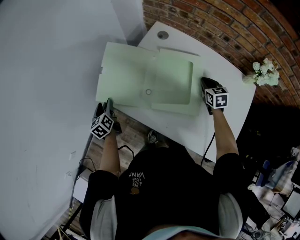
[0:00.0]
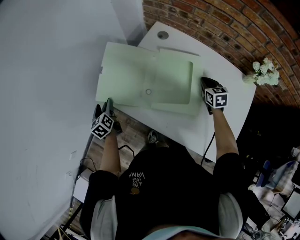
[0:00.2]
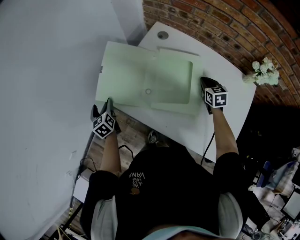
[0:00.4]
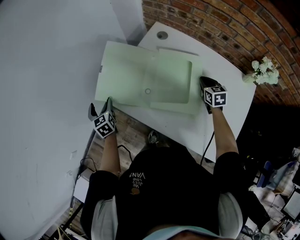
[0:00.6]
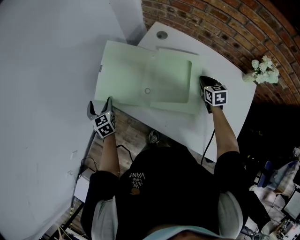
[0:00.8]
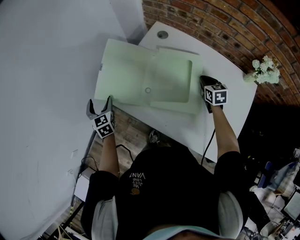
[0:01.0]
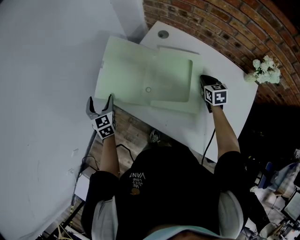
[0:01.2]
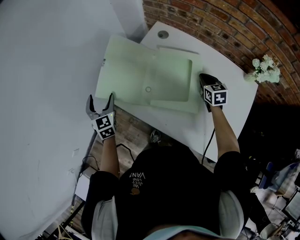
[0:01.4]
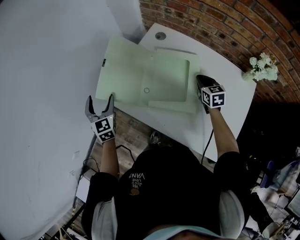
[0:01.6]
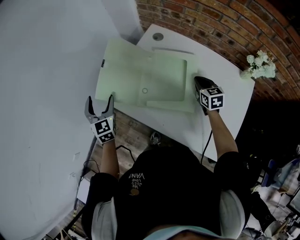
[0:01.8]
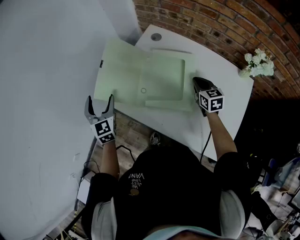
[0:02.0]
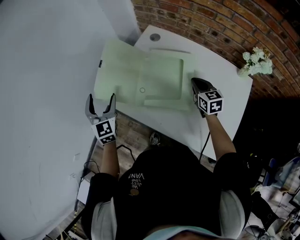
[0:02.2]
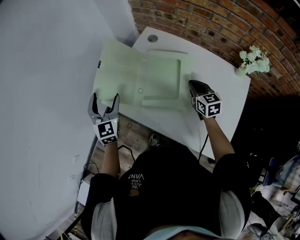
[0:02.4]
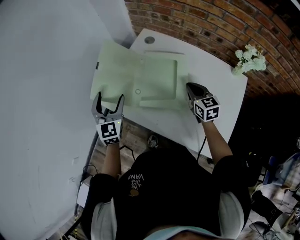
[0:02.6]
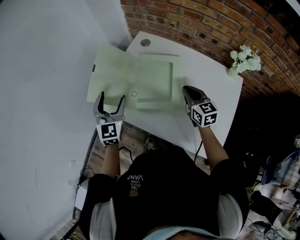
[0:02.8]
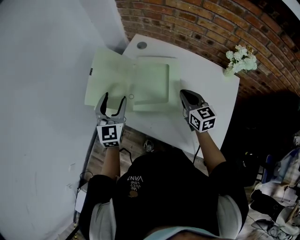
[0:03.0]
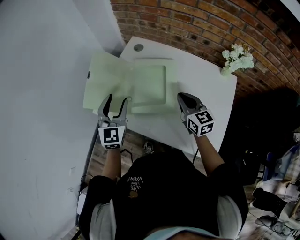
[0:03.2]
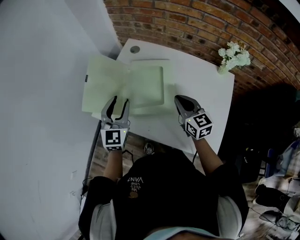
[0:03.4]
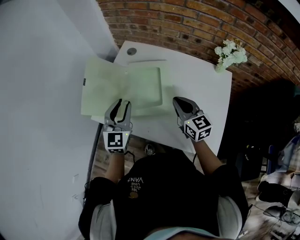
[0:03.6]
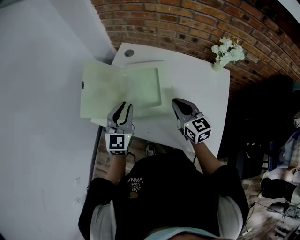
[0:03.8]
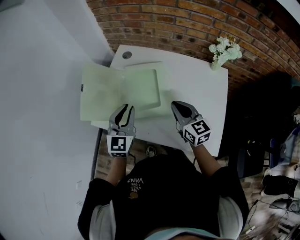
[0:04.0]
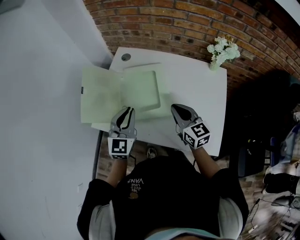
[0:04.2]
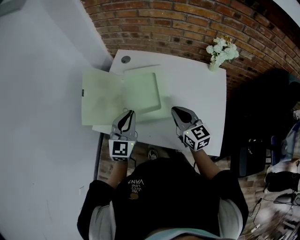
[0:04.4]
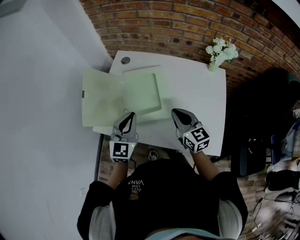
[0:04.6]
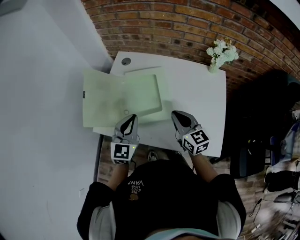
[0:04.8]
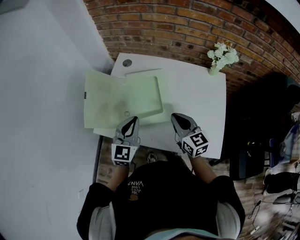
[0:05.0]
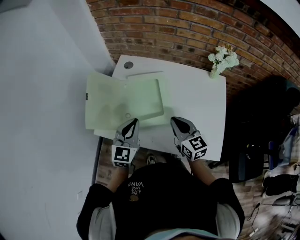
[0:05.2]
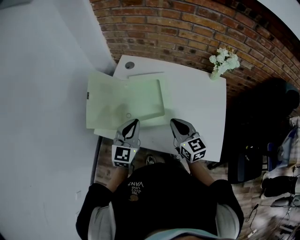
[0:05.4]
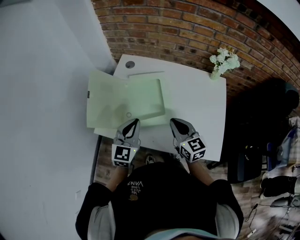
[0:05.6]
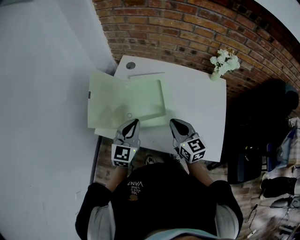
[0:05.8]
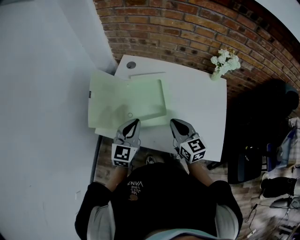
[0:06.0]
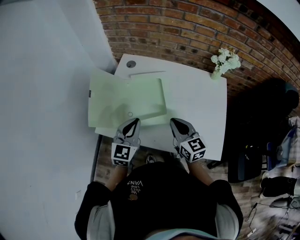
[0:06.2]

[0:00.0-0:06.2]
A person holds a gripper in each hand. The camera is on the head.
0:00.0 to 0:01.6: The left gripper goes about 15 cm upward, rotates around the line of its fingers by some 40 degrees, clockwise from behind, and opens up.
0:01.6 to 0:03.2: The left gripper shifts some 20 cm to the right, swivels roughly 30 degrees, and closes its fingers. The right gripper moves backward and upward, approximately 15 cm.
0:03.2 to 0:04.6: The left gripper moves to the right, some 5 cm, and closes up; the right gripper is displaced backward by roughly 5 cm.
0:04.6 to 0:06.2: There are only small adjustments of the grippers.

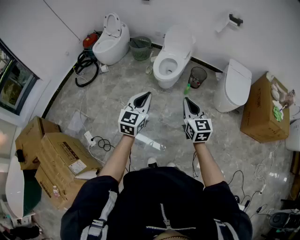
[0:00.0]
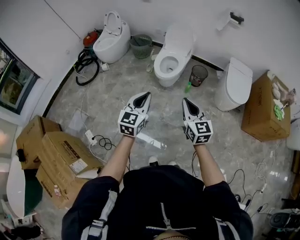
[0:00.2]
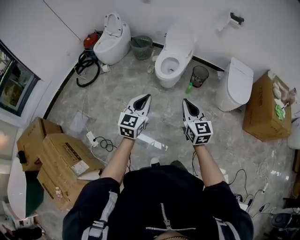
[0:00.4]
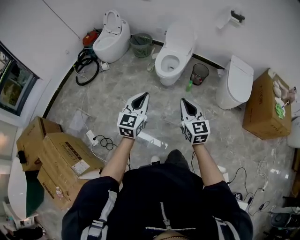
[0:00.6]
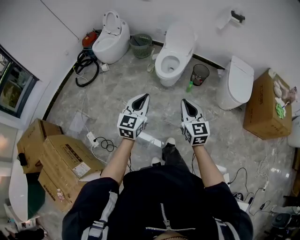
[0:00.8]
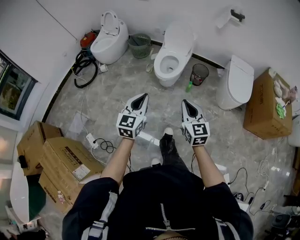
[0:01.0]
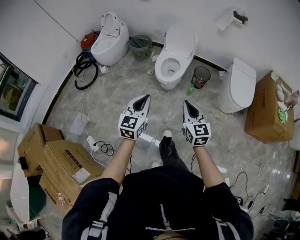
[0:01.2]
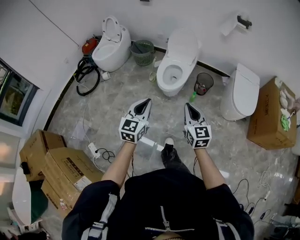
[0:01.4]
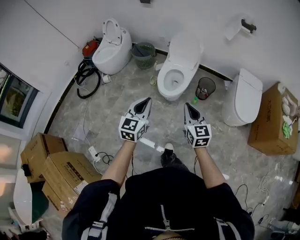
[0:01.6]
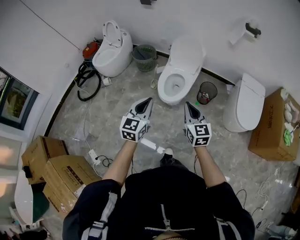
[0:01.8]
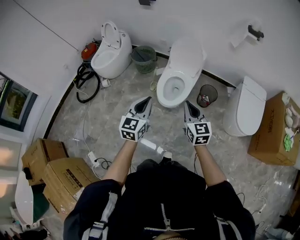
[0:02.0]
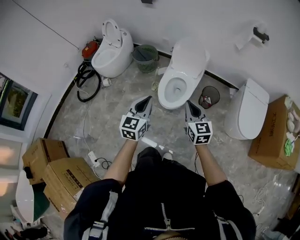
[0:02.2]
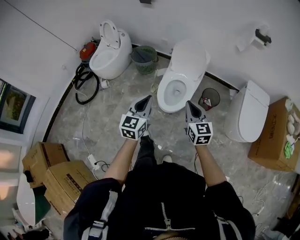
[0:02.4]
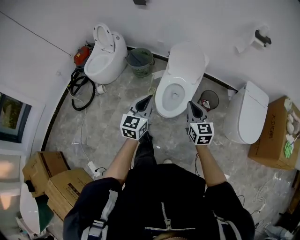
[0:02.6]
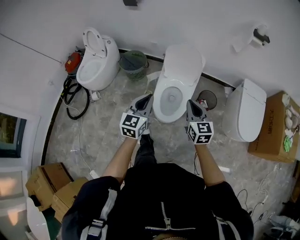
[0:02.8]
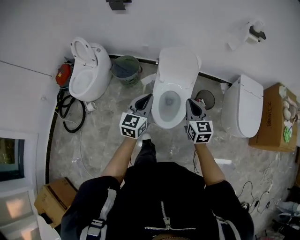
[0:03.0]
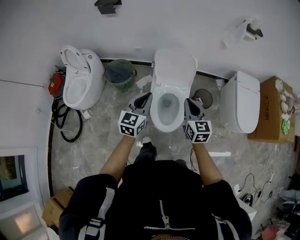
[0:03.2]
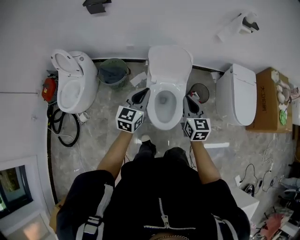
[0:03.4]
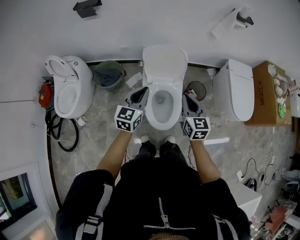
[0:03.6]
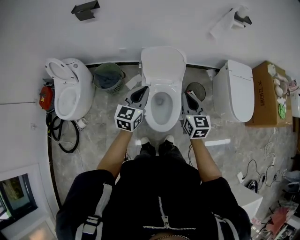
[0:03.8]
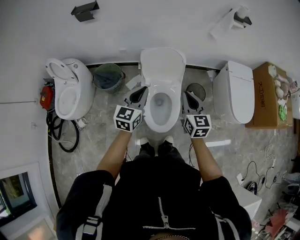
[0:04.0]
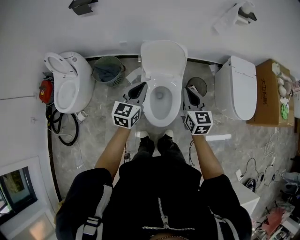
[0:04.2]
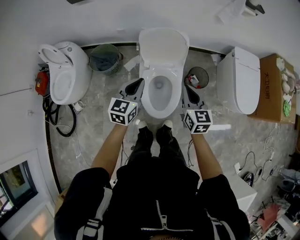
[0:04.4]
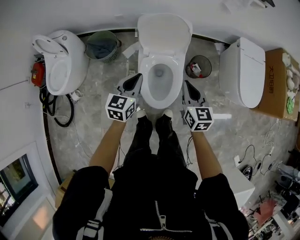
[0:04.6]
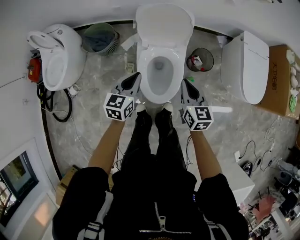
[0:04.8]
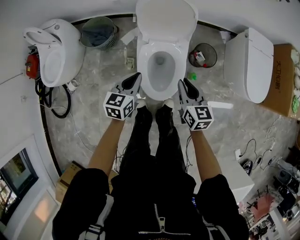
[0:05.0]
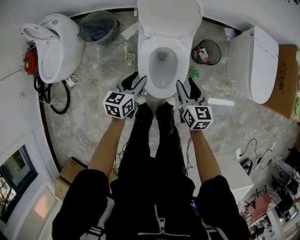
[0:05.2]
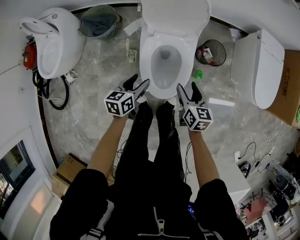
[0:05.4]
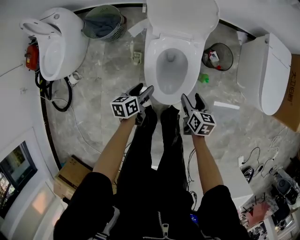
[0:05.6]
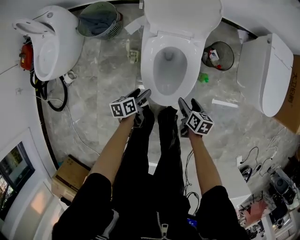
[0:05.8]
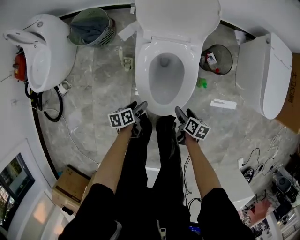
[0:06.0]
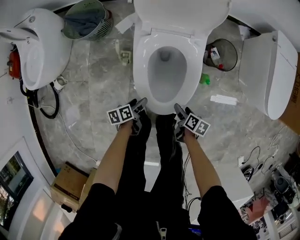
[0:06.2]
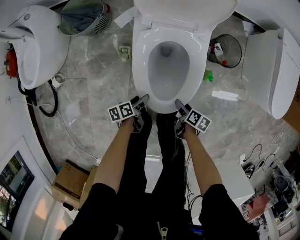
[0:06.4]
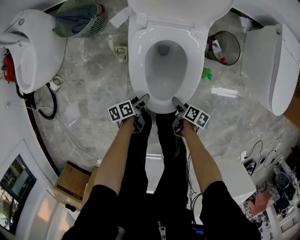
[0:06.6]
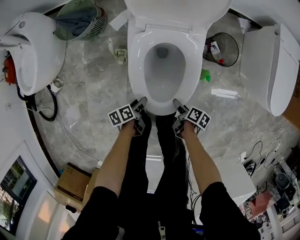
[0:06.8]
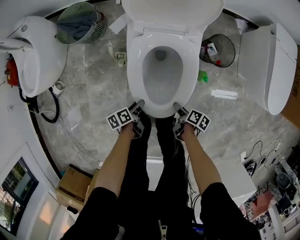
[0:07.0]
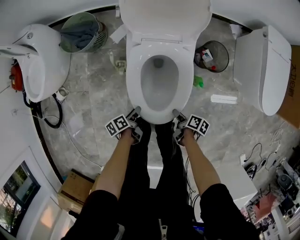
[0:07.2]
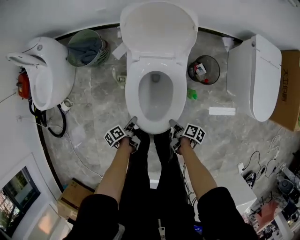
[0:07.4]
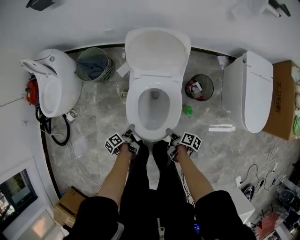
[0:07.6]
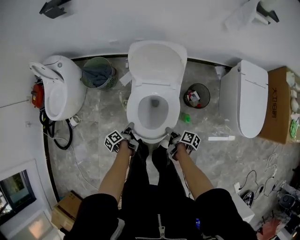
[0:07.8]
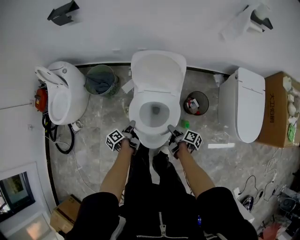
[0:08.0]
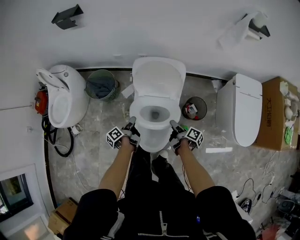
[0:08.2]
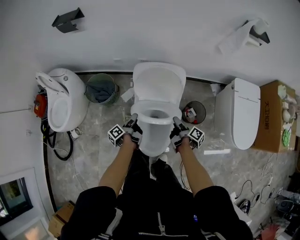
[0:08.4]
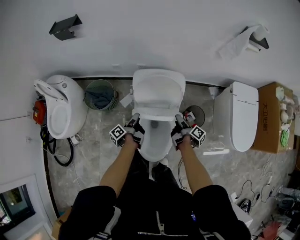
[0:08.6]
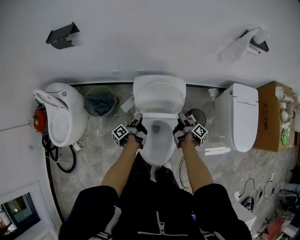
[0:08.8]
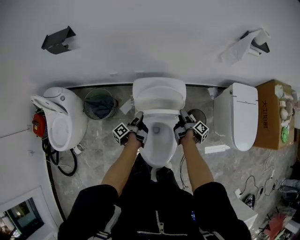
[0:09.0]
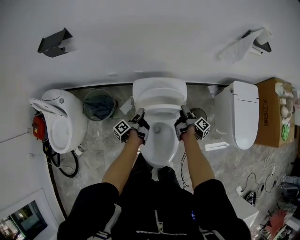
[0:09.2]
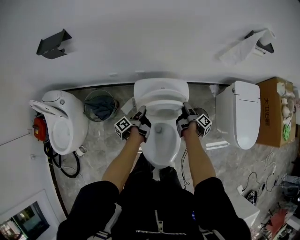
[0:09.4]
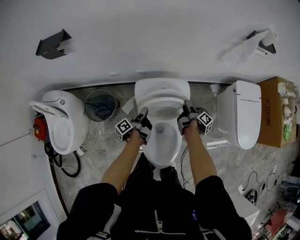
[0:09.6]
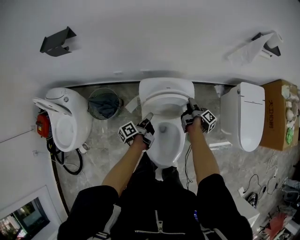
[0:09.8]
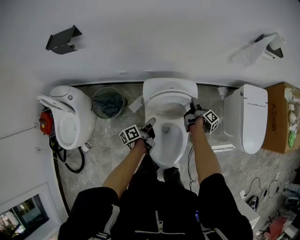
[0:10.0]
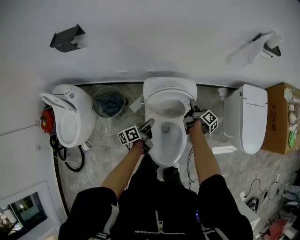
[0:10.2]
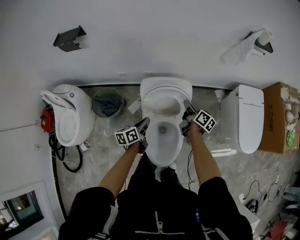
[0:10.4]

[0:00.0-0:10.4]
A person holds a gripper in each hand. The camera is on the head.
0:00.0 to 0:01.4: Both grippers move forward, roughly 15 cm.
0:01.4 to 0:03.0: Both grippers are carried forward, approximately 50 cm.
0:03.0 to 0:04.4: The left gripper travels forward and downward by roughly 15 cm. Meanwhile the right gripper is displaced forward by some 10 cm.
0:04.4 to 0:06.0: The grippers both shift downward by about 50 cm. The left gripper rolls counterclockwise, seen from behind, by roughly 50 degrees, and opens its fingers, while the right gripper points its fingers some 30 degrees further downward, and opens its fingers.
0:06.0 to 0:07.4: The left gripper goes downward and returns, about 10 cm each way, changes its angle by approximately 30 degrees, and closes, while the right gripper travels downward and back again, roughly 10 cm each way, swivels roughly 30 degrees, and closes up.
0:07.4 to 0:09.0: The grippers both shift forward and upward by approximately 40 cm. The right gripper changes its angle by approximately 40 degrees; the left gripper rotates roughly 30 degrees.
0:09.0 to 0:10.4: The grippers both shift upward by some 5 cm. The right gripper changes its angle by approximately 40 degrees, and closes up. The left gripper rotates around the line of its fingers by some 50 degrees, clockwise from behind, and closes.

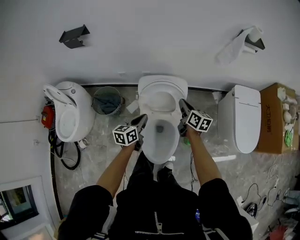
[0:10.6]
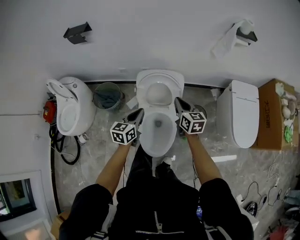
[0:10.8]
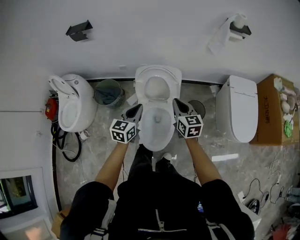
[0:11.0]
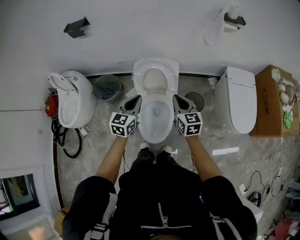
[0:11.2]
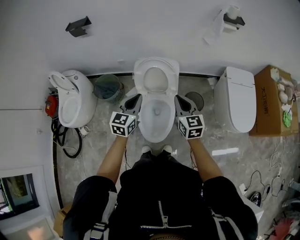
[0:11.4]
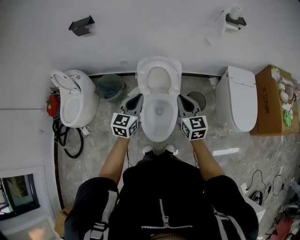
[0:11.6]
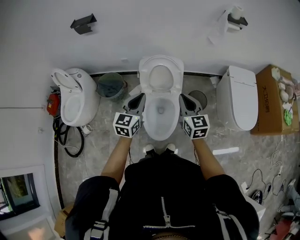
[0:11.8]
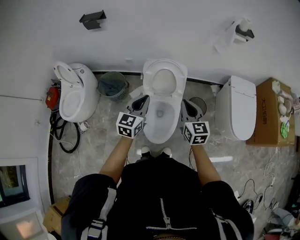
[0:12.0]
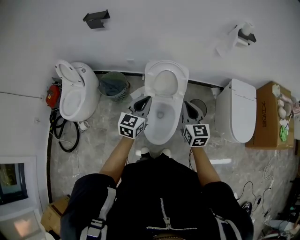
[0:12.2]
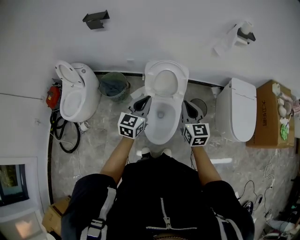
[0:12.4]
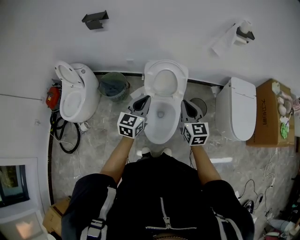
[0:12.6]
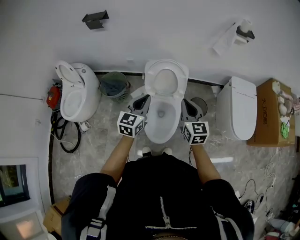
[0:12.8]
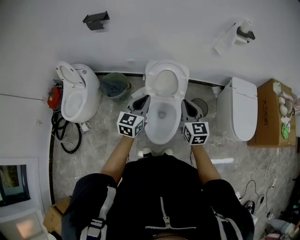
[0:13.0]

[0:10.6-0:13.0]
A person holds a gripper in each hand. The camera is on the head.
0:10.6 to 0:11.8: The right gripper shifts about 25 cm backward and upward, and swivels approximately 40 degrees. The left gripper travels upward and backward by some 20 cm, and turns by approximately 30 degrees.
0:11.8 to 0:13.0: The grippers stay close to where they were, moving slightly.

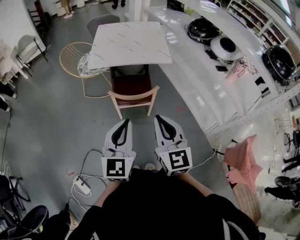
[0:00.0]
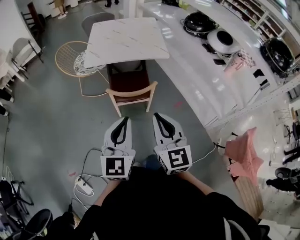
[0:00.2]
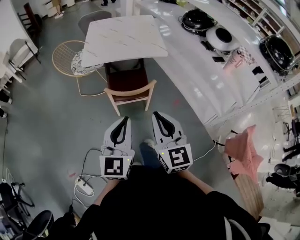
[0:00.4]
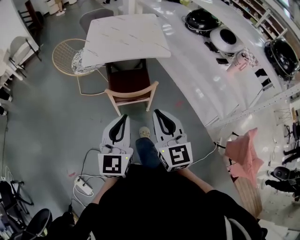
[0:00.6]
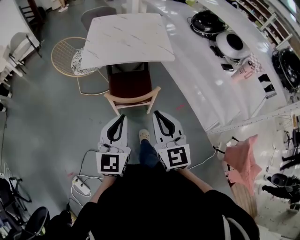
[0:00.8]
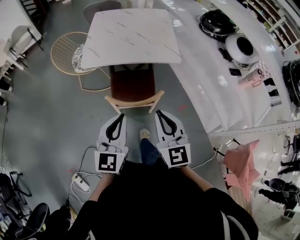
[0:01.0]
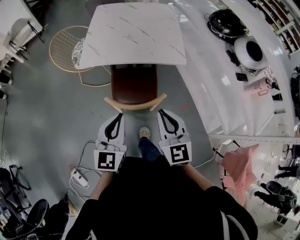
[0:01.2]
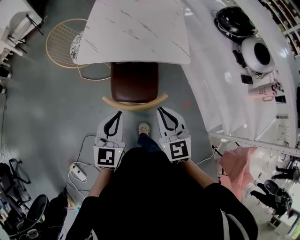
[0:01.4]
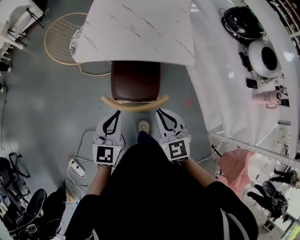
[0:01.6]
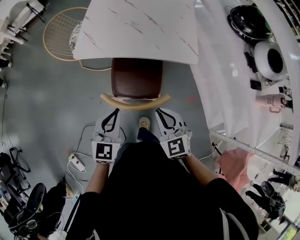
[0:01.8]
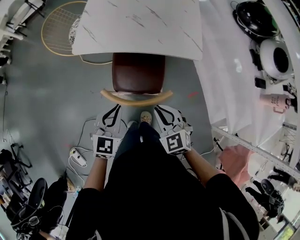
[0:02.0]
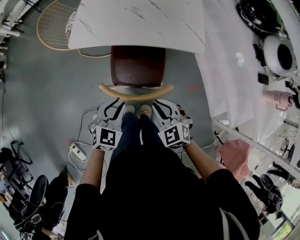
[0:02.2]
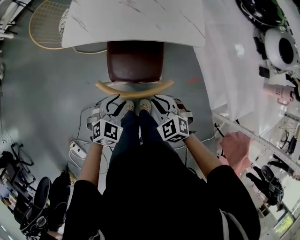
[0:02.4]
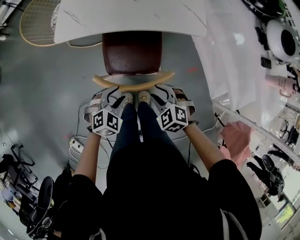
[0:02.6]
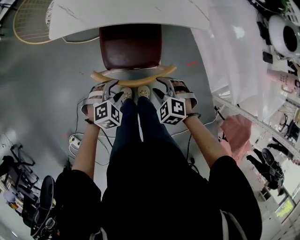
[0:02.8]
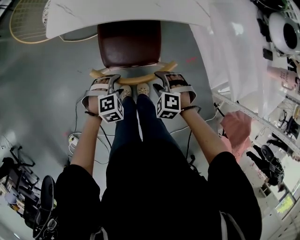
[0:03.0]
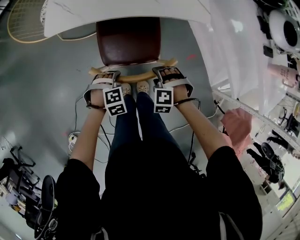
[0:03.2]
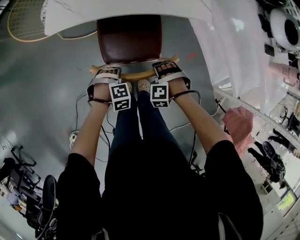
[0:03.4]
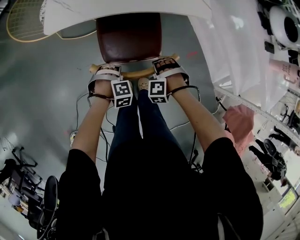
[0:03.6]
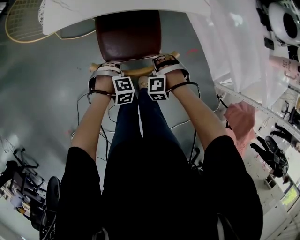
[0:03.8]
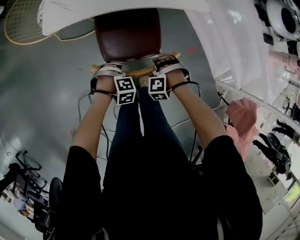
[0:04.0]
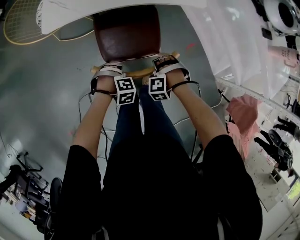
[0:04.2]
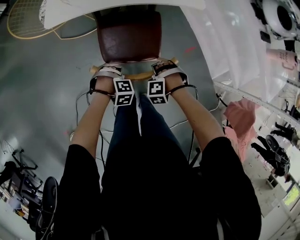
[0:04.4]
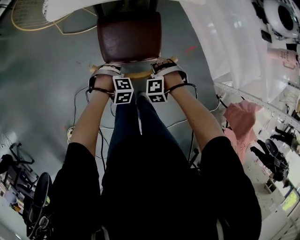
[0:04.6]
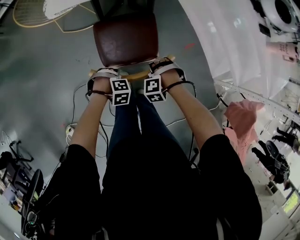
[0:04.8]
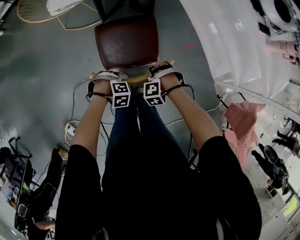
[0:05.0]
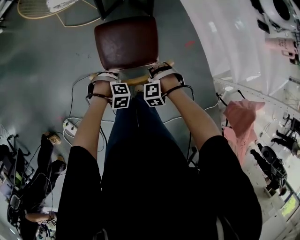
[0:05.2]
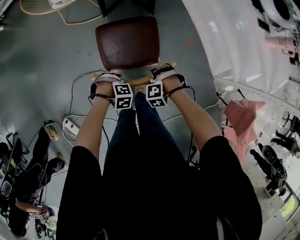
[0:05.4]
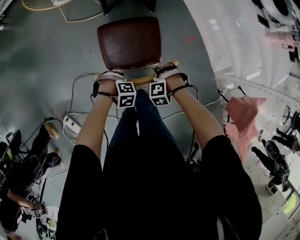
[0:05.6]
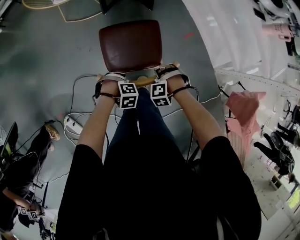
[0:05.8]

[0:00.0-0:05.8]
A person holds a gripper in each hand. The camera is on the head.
0:00.0 to 0:01.4: Both grippers move forward and downward, approximately 30 cm.
0:01.4 to 0:02.8: Both grippers move downward, roughly 25 cm. The right gripper points its fingers some 40 degrees further downward, and opens its fingers; the left gripper tilts its fingers some 50 degrees downward, and opens its fingers.
0:02.8 to 0:04.4: Both grippers travel together downward, some 10 cm. The left gripper turns by some 40 degrees, and closes, while the right gripper turns by approximately 40 degrees.
0:04.4 to 0:05.8: The right gripper moves roughly 25 cm. Meanwhile the left gripper shifts by approximately 25 cm.
